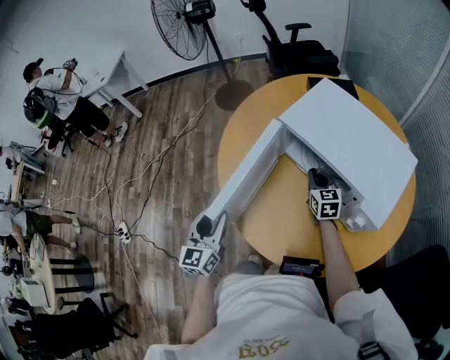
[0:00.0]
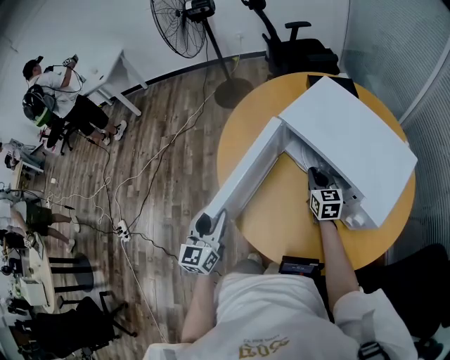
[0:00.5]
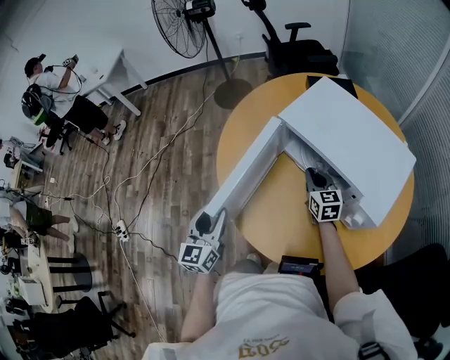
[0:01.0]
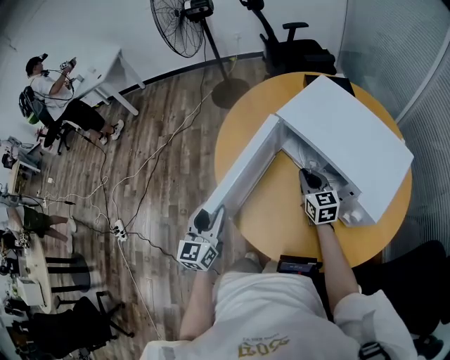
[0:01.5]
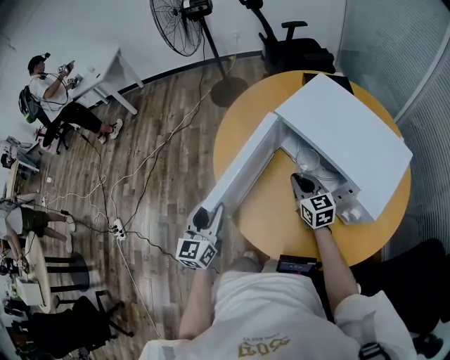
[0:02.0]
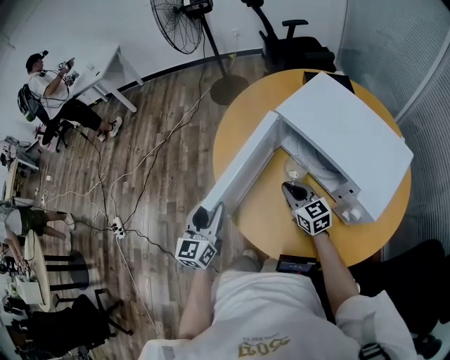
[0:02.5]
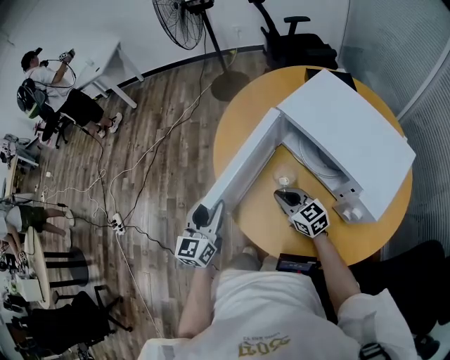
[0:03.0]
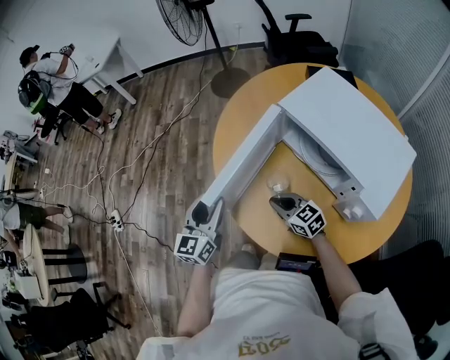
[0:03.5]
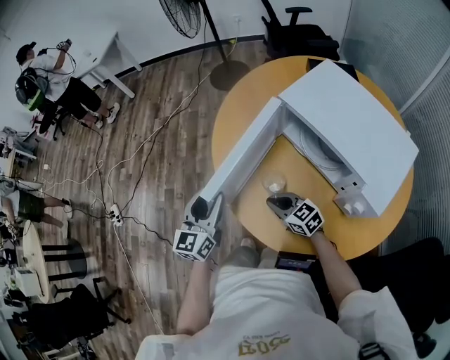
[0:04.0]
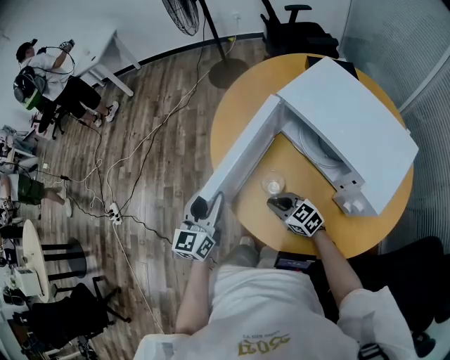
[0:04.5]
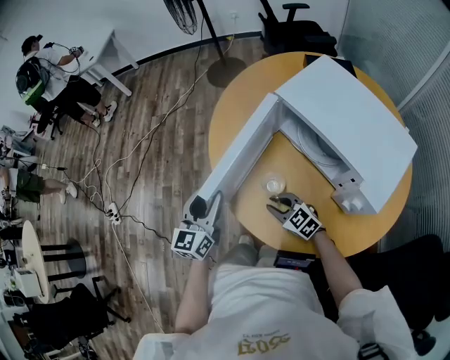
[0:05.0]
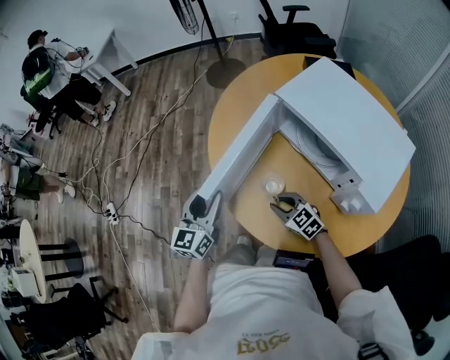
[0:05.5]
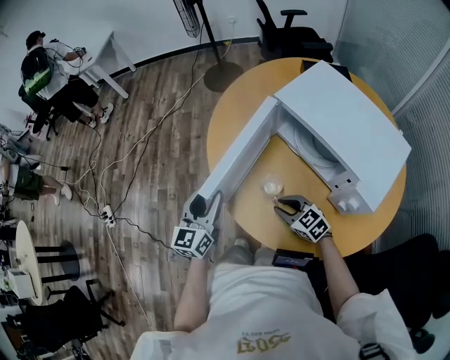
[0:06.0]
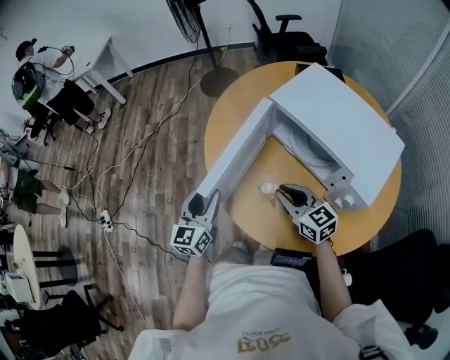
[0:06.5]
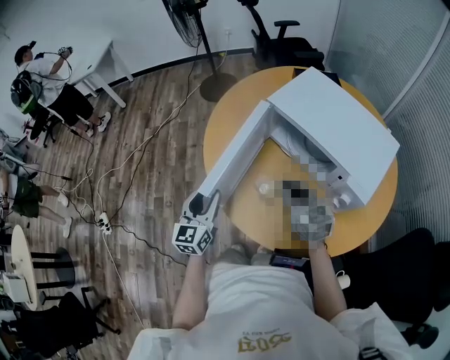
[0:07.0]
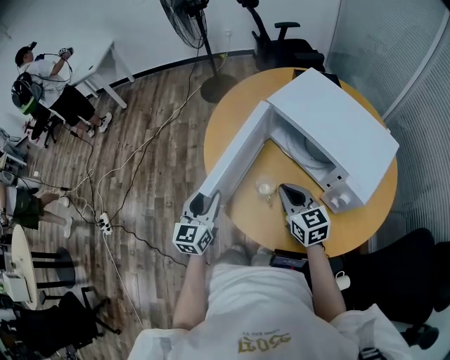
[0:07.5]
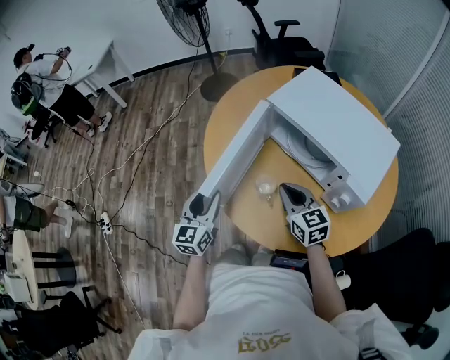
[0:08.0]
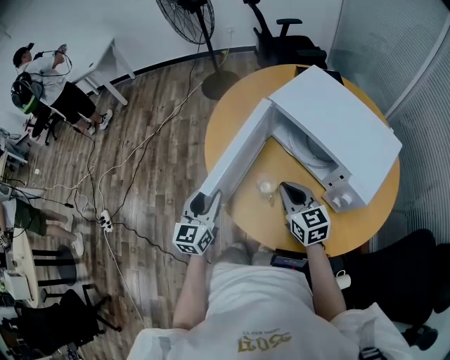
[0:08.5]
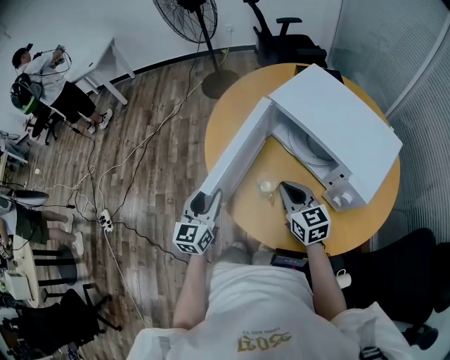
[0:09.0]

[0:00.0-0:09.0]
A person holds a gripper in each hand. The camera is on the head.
0:00.0 to 0:02.0: The right gripper goes approximately 10 cm to the left and backward.
0:02.0 to 0:04.5: The right gripper heads to the left, backward and downward, covering approximately 15 cm, and swivels roughly 40 degrees.
0:04.5 to 0:07.0: The right gripper travels upward and to the right by approximately 15 cm, and turns by approximately 30 degrees.
0:07.0 to 0:09.0: The grippers make only small movements.

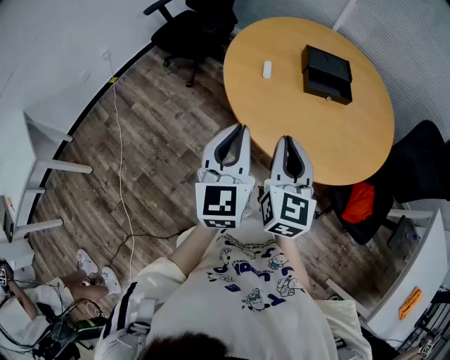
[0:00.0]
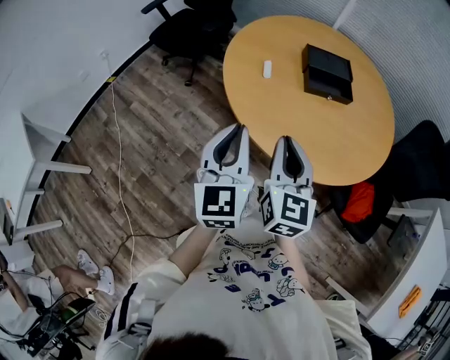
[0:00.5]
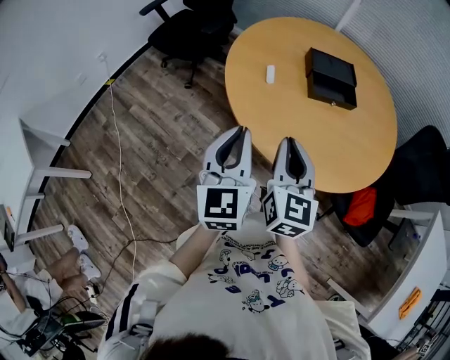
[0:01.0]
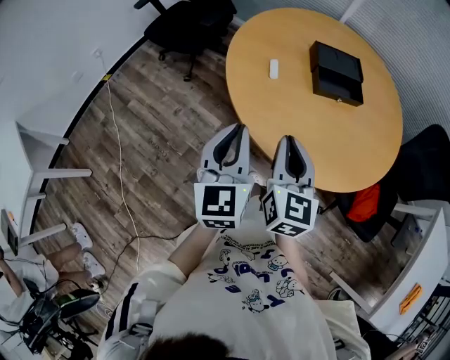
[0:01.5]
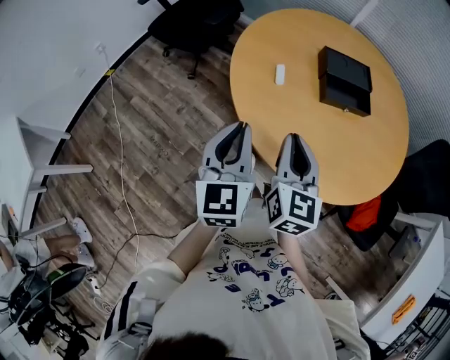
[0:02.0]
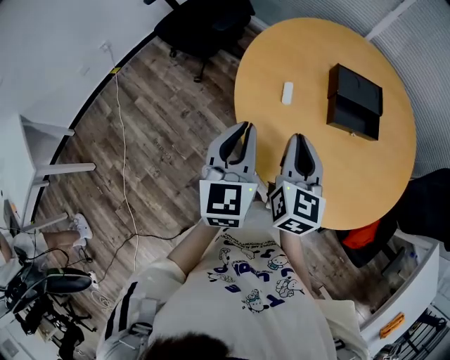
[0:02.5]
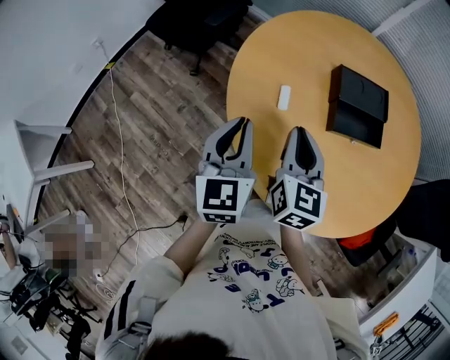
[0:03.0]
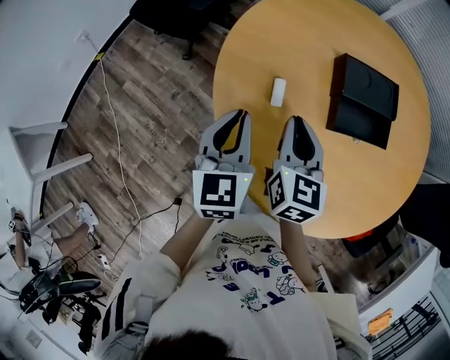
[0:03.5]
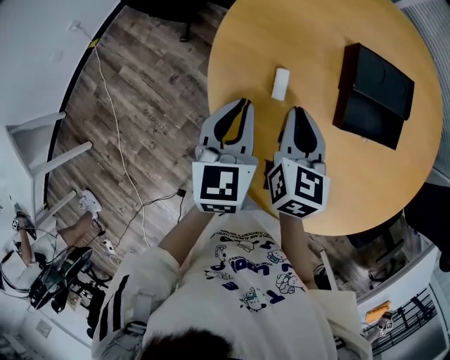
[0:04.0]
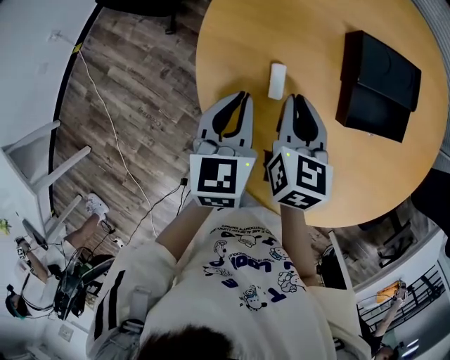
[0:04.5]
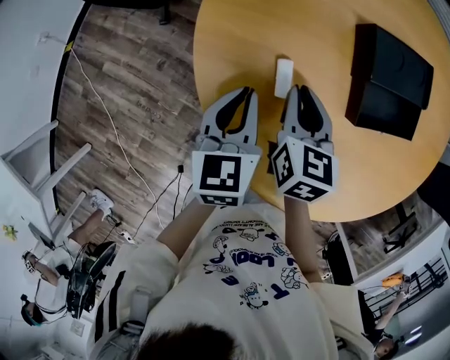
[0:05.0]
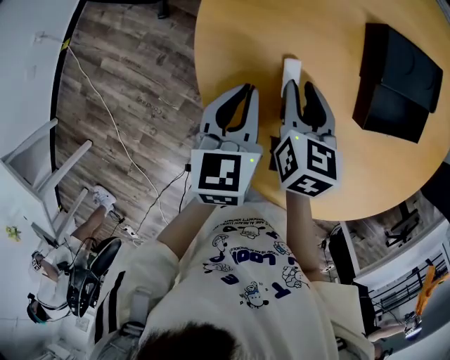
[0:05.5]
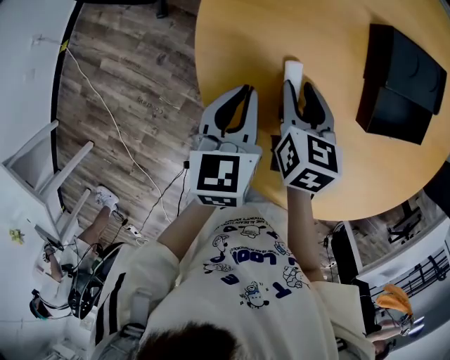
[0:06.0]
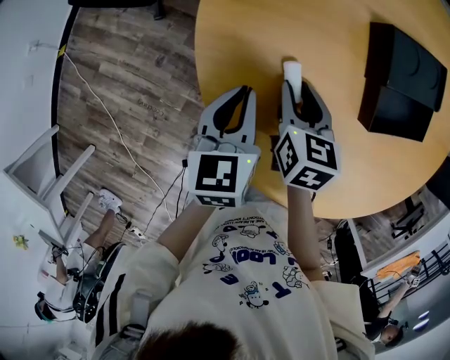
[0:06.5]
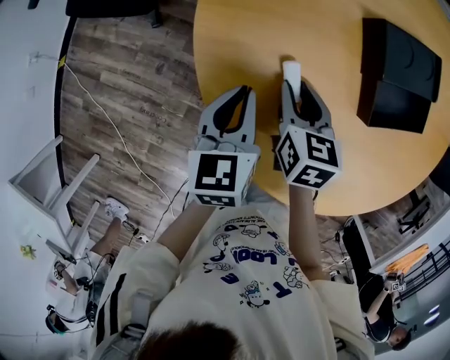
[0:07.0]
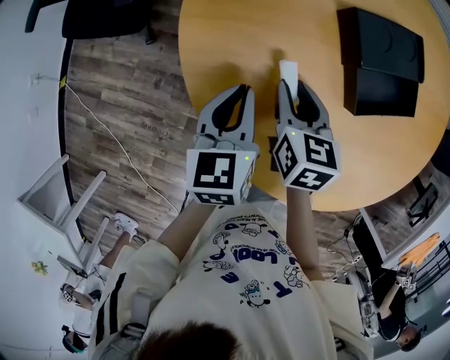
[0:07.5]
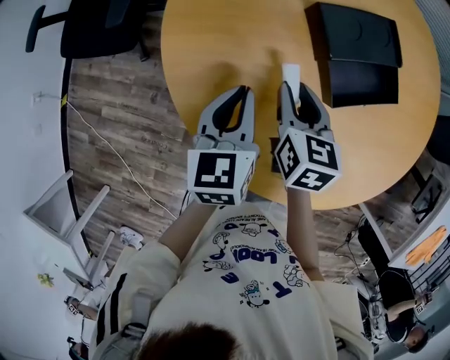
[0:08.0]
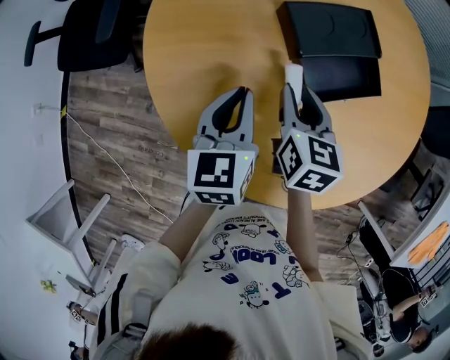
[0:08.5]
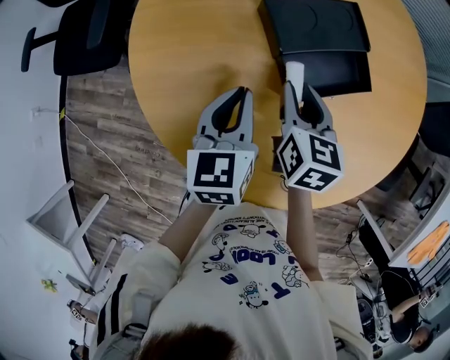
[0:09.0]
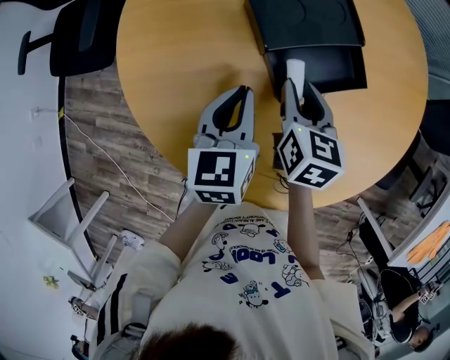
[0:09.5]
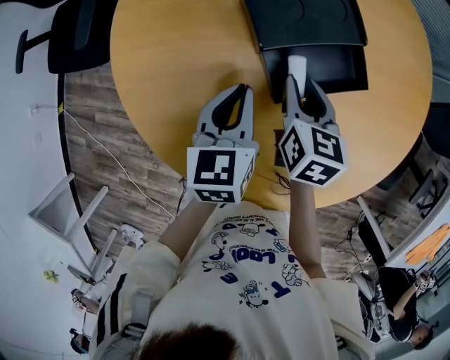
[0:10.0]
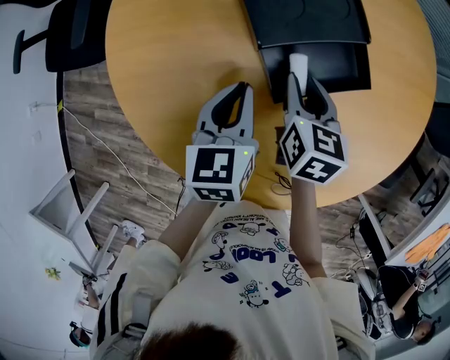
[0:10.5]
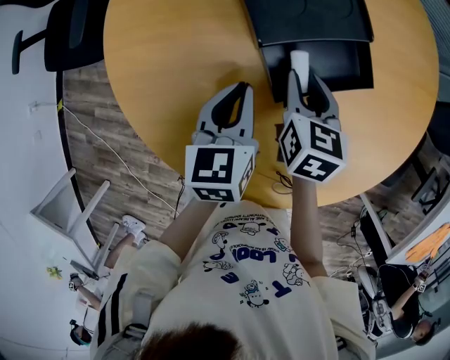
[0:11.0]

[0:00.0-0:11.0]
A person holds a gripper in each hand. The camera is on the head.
0:00.0 to 0:02.0: Both grippers travel together forward, about 10 cm.
0:02.0 to 0:03.5: Both grippers move forward and downward, approximately 20 cm.
0:03.5 to 0:05.5: The grippers both shift downward and forward by roughly 15 cm. The right gripper opens its fingers.
0:05.5 to 0:07.5: The grippers stay close to where they were, moving slightly.
0:07.5 to 0:09.0: The grippers both shift to the right by about 15 cm.
0:09.0 to 0:11.0: The left gripper moves roughly 5 cm; the right gripper shifts by approximately 5 cm.

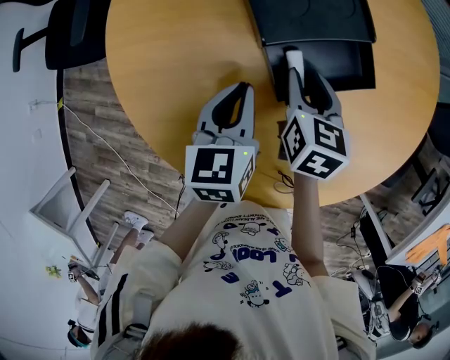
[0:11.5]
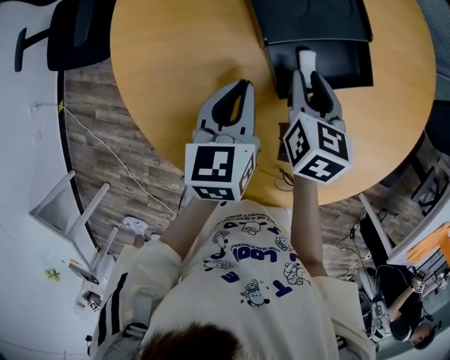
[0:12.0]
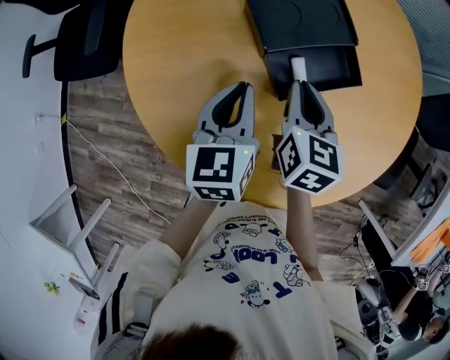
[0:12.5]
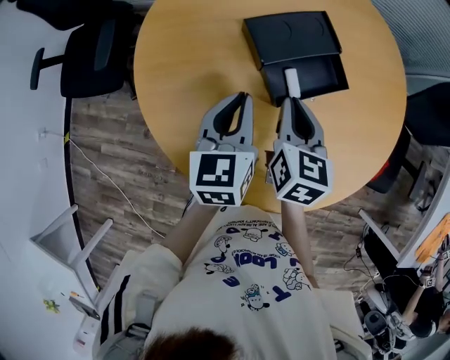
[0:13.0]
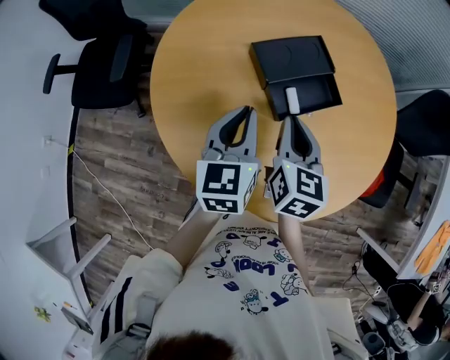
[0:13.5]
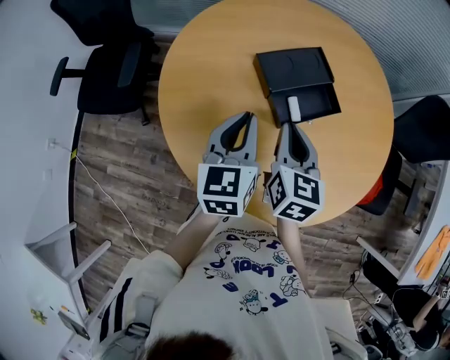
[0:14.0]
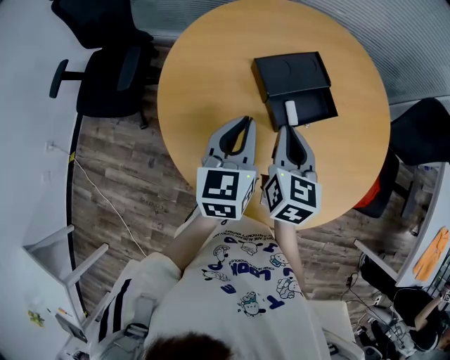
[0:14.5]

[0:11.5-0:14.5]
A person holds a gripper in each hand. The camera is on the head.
0:11.5 to 0:13.0: Both grippers travel together upward, approximately 10 cm. The right gripper closes.
0:13.0 to 0:14.5: The grippers both shift upward by some 5 cm.

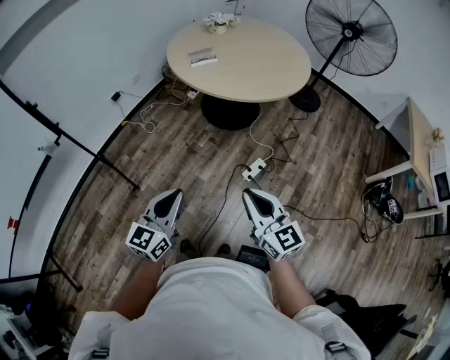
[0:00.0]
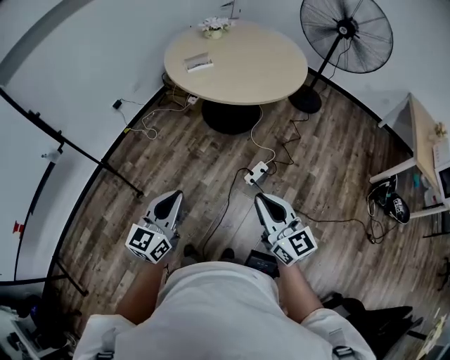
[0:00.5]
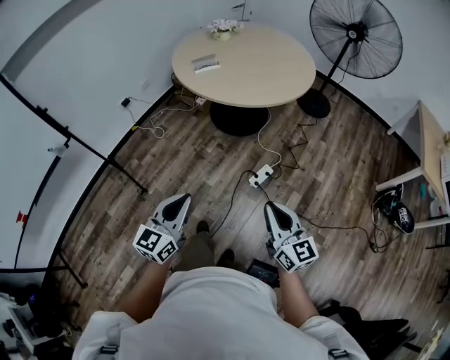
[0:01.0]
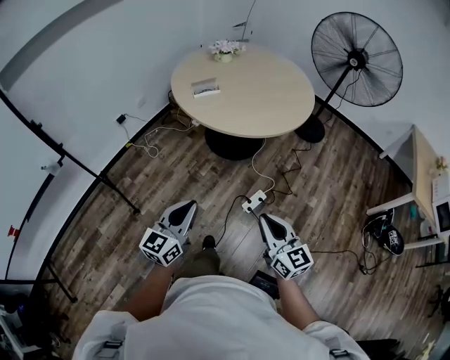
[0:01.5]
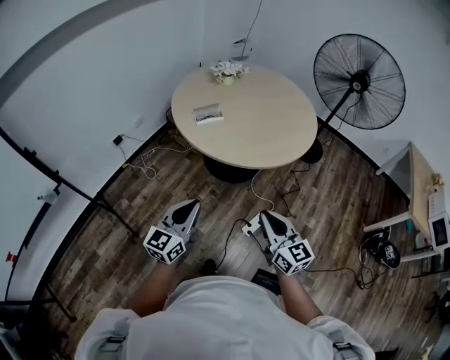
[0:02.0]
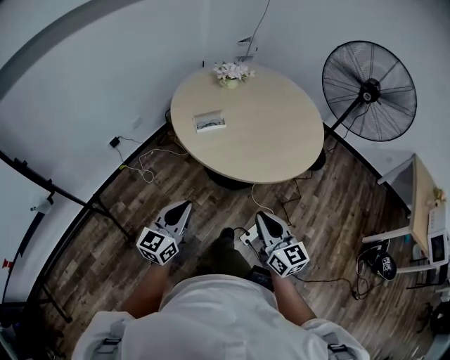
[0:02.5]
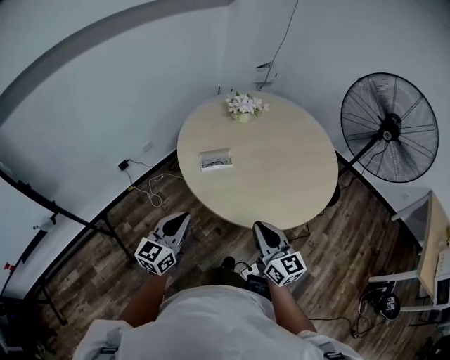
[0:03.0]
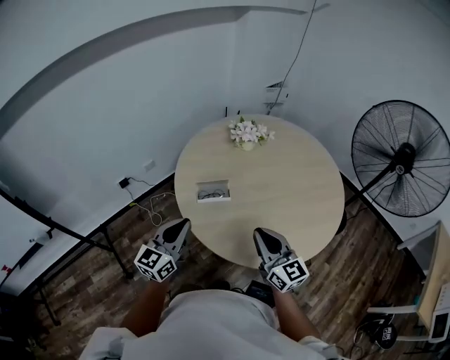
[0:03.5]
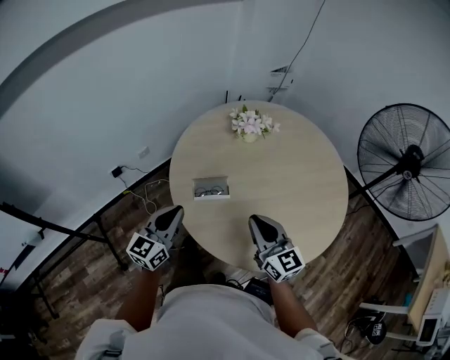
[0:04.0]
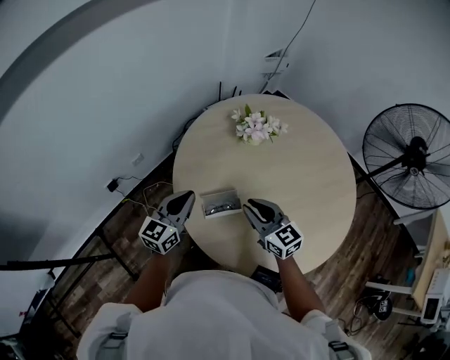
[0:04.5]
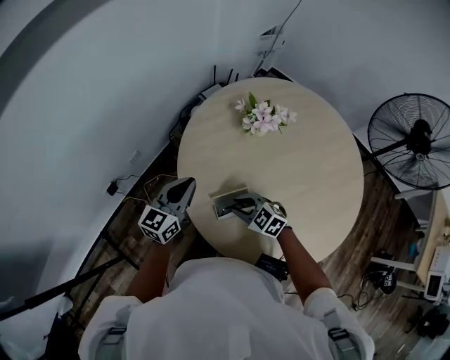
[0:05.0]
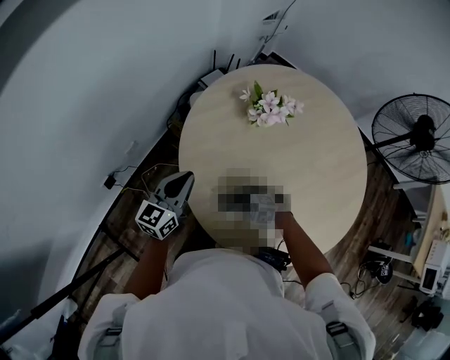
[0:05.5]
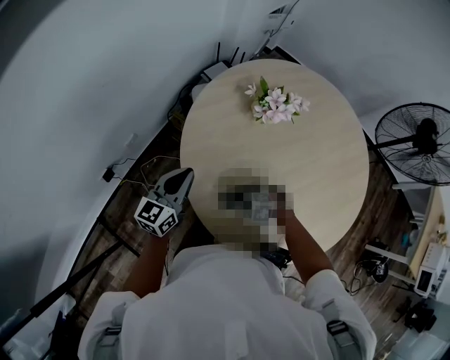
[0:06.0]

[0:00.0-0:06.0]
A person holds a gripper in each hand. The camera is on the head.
0:00.0 to 0:02.0: Both grippers travel together forward, some 25 cm.
0:02.0 to 0:04.0: The two grippers travel together, forward, some 50 cm.
0:04.0 to 0:06.0: The left gripper moves approximately 30 cm. Meanwhile the right gripper heads downward, covering some 30 cm, and points its fingers some 70 degrees further downward.
